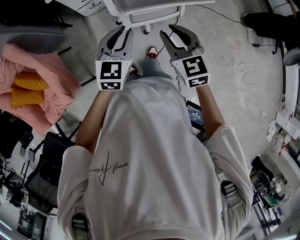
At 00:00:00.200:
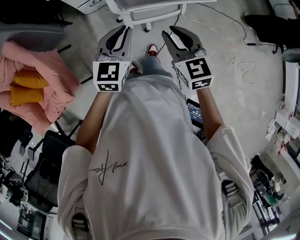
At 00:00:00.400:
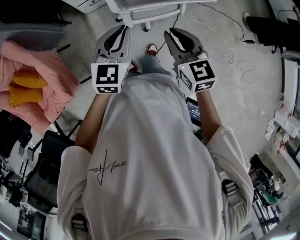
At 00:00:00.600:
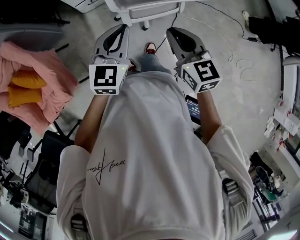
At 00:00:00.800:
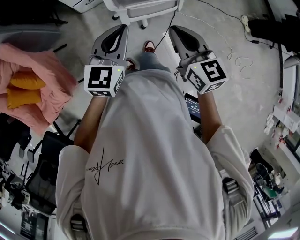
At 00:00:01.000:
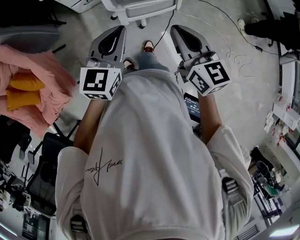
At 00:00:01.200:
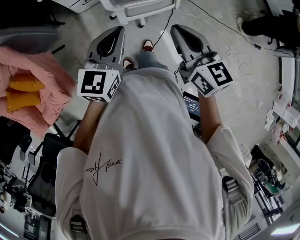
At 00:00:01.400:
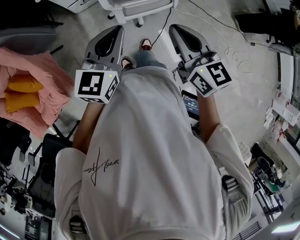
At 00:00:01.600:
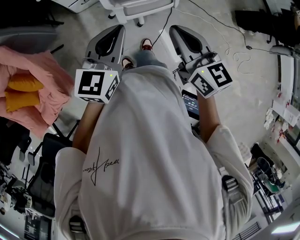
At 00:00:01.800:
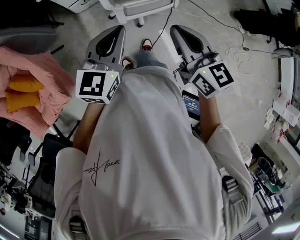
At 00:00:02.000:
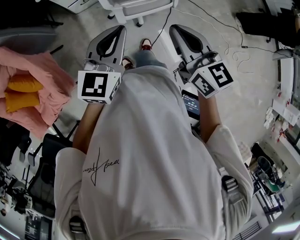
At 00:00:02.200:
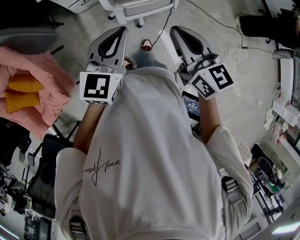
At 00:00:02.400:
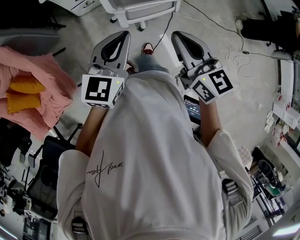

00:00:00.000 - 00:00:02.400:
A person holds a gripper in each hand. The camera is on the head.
00:00:00.000 - 00:00:01.200: Both grippers travel together upward, roughly 5 cm. The right gripper turns by roughly 20 degrees, and closes.
00:00:01.200 - 00:00:02.400: The grippers make only small movements.

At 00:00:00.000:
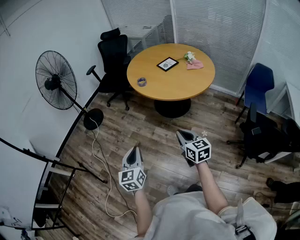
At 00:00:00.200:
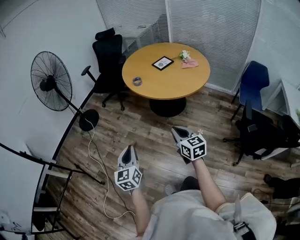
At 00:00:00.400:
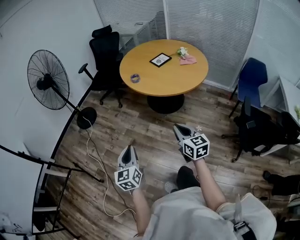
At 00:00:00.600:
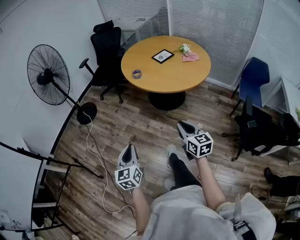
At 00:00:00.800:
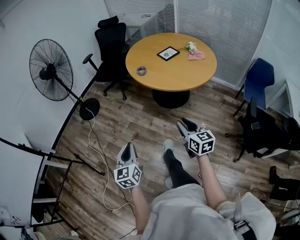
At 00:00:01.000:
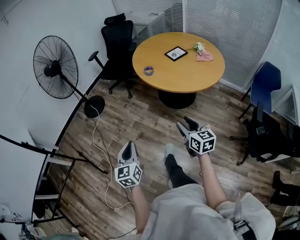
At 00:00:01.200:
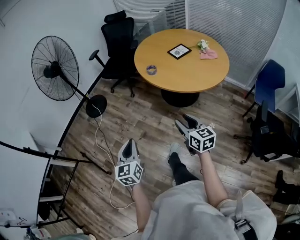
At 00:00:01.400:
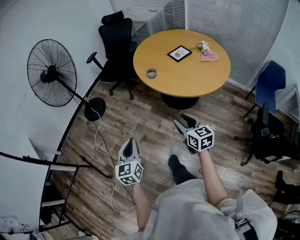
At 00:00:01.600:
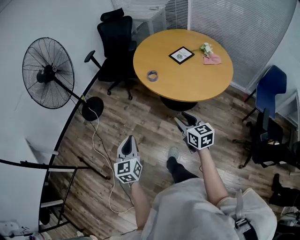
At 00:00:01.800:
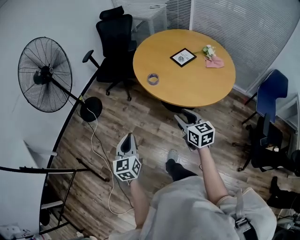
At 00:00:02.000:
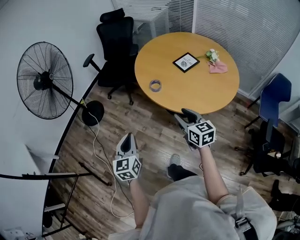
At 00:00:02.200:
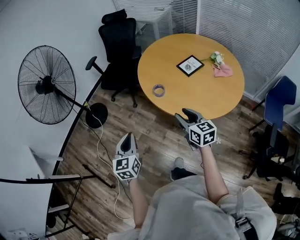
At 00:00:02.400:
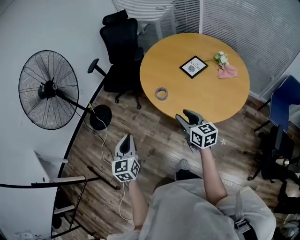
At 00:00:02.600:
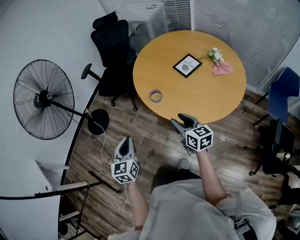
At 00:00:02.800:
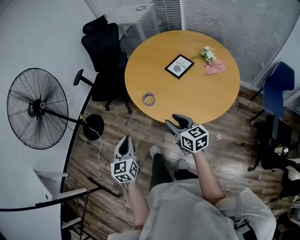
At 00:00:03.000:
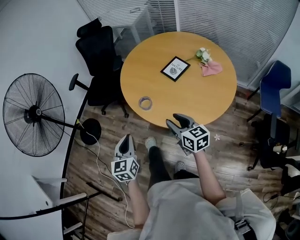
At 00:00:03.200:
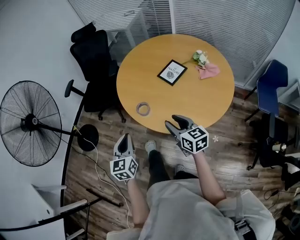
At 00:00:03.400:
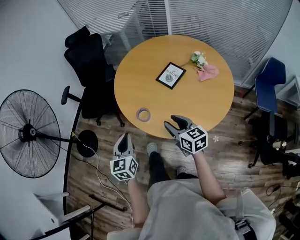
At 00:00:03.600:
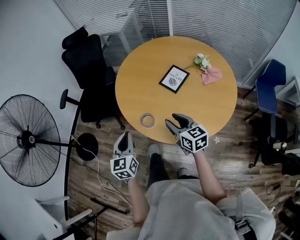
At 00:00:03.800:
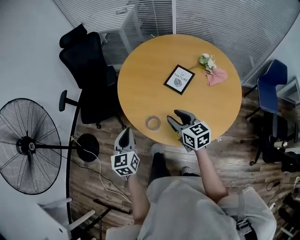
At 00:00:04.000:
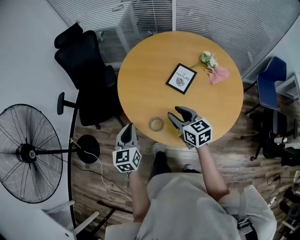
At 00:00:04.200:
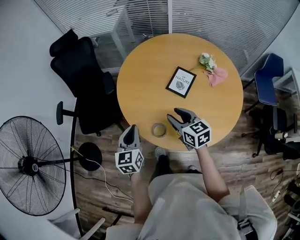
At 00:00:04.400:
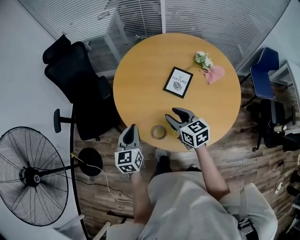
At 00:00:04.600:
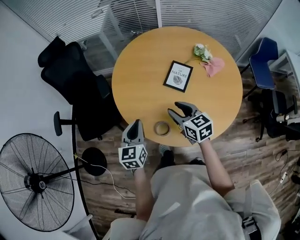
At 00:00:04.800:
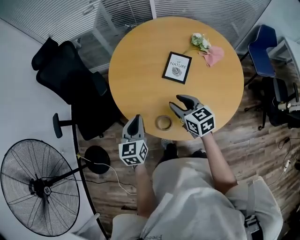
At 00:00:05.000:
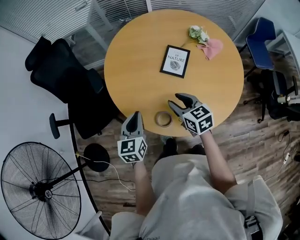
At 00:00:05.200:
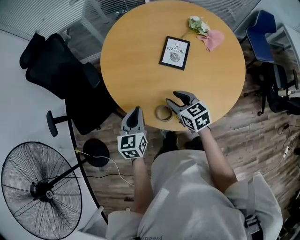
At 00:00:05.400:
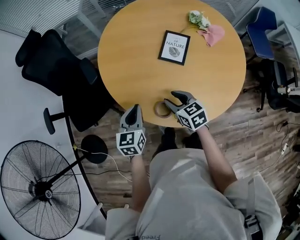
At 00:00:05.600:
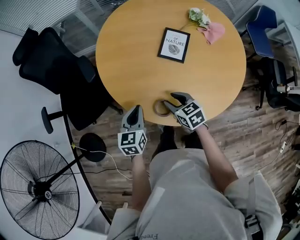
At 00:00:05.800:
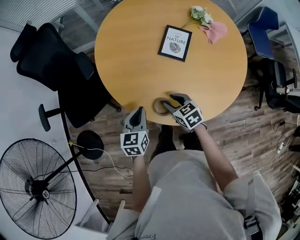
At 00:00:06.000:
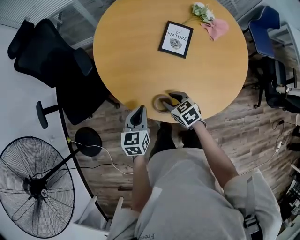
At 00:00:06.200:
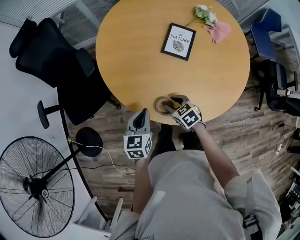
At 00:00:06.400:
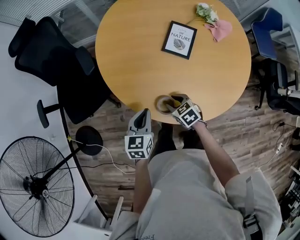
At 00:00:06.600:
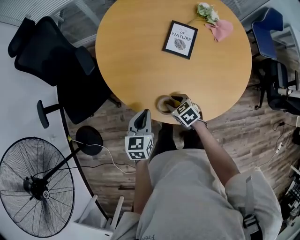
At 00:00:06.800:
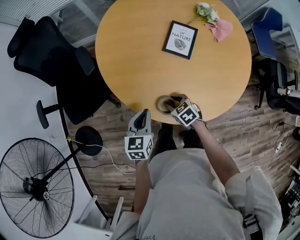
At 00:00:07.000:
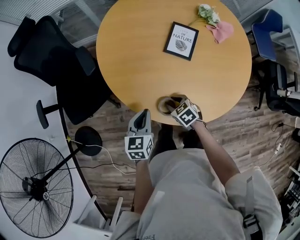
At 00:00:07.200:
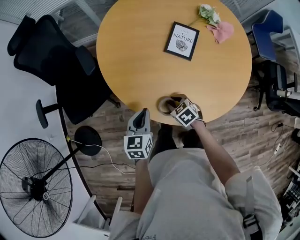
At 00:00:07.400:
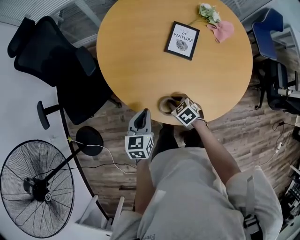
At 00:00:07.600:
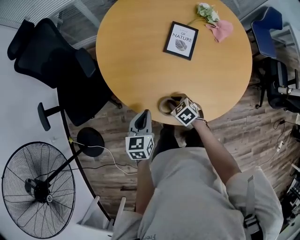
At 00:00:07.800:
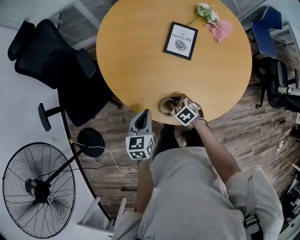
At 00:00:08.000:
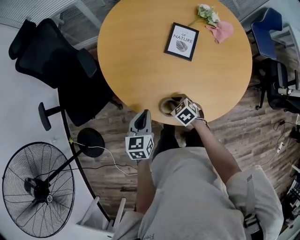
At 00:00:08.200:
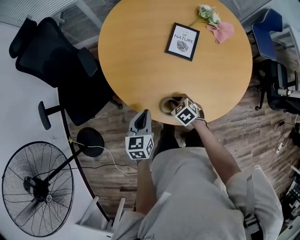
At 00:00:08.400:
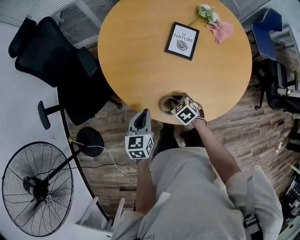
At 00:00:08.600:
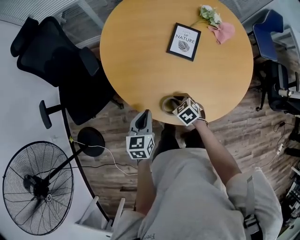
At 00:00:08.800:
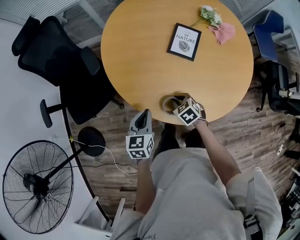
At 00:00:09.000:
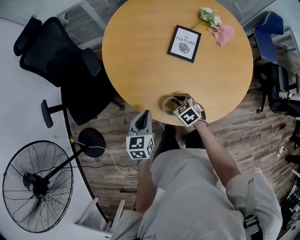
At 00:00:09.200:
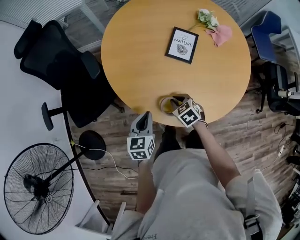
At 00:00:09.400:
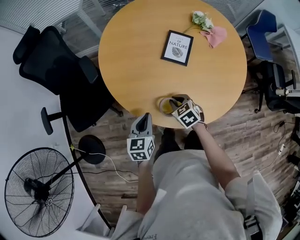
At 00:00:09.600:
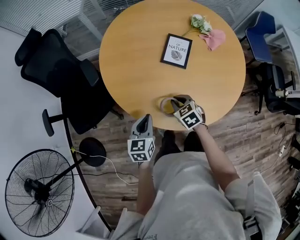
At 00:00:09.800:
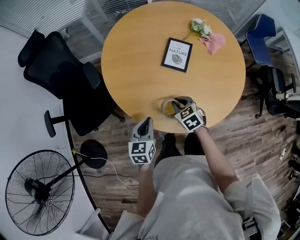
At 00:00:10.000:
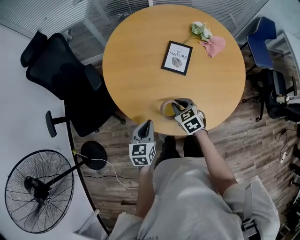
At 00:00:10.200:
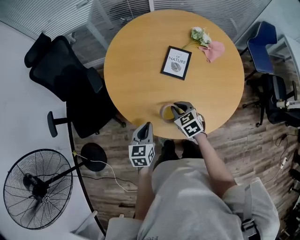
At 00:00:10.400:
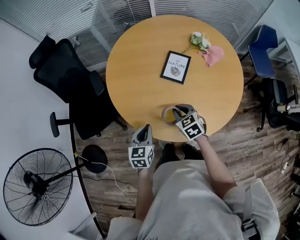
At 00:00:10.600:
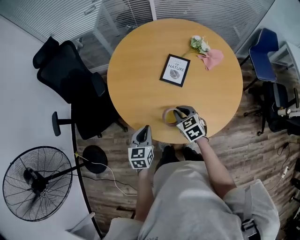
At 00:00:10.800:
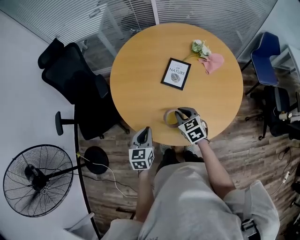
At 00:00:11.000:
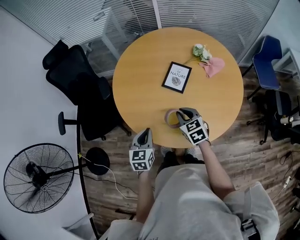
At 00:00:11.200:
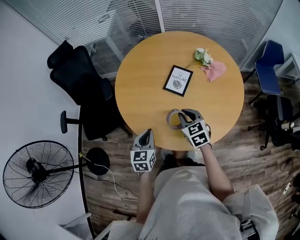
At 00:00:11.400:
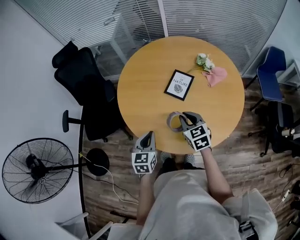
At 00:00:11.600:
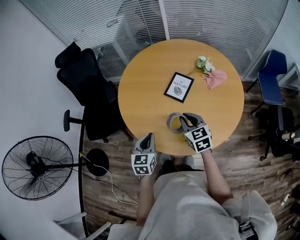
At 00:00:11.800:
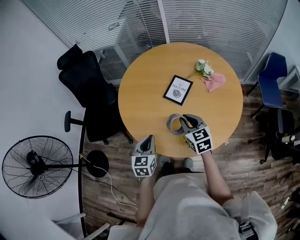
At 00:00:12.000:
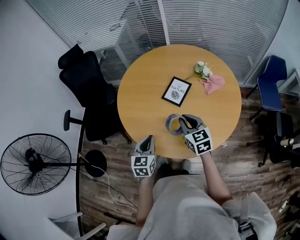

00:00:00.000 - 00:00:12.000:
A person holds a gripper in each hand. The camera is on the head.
00:00:00.000 - 00:00:01.600: The two grippers go approximately 25 cm forward. The right gripper opens.
00:00:01.600 - 00:00:03.000: Both grippers travel together forward, about 25 cm.
00:00:03.000 - 00:00:04.400: Both grippers travel together forward, approximately 30 cm. The left gripper rotates roughly 20 degrees.
00:00:04.400 - 00:00:06.000: Both grippers travel together downward, approximately 20 cm. The right gripper turns by roughly 30 degrees. Meanwhile the left gripper swivels approximately 20 degrees.
00:00:06.000 - 00:00:07.600: The right gripper is displaced downward by some 5 cm, and closes.
00:00:07.600 - 00:00:09.000: The grippers move only a little.
00:00:09.000 - 00:00:10.400: The right gripper moves upward and to the right, approximately 15 cm, while the left gripper is displaced to the right by approximately 5 cm.
00:00:10.400 - 00:00:12.000: The right gripper shifts approximately 15 cm upward and to the right, and changes its angle by some 20 degrees. The left gripper goes some 10 cm to the right and upward.

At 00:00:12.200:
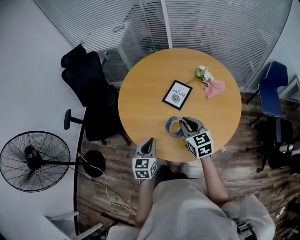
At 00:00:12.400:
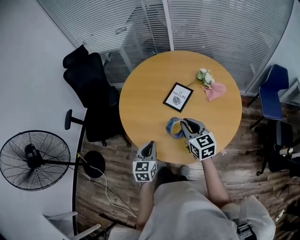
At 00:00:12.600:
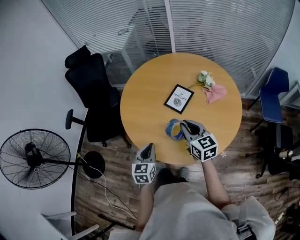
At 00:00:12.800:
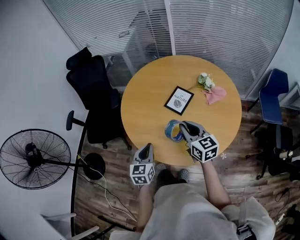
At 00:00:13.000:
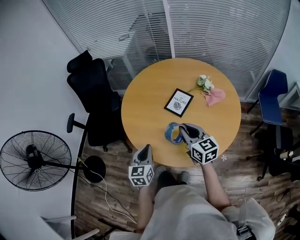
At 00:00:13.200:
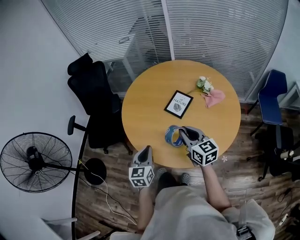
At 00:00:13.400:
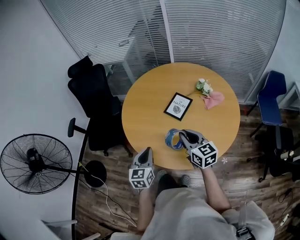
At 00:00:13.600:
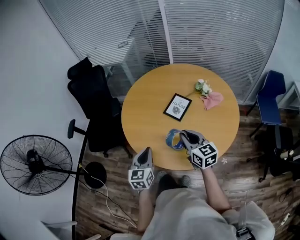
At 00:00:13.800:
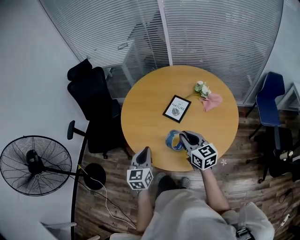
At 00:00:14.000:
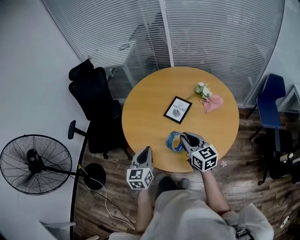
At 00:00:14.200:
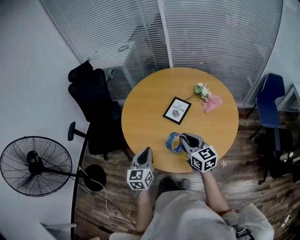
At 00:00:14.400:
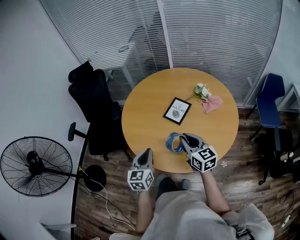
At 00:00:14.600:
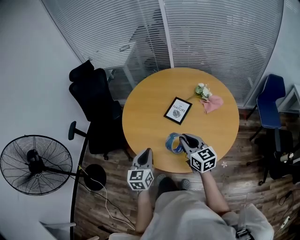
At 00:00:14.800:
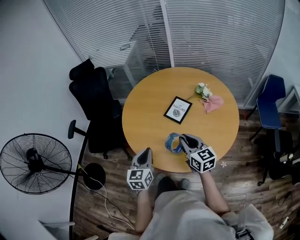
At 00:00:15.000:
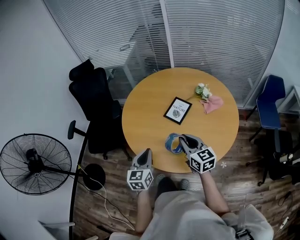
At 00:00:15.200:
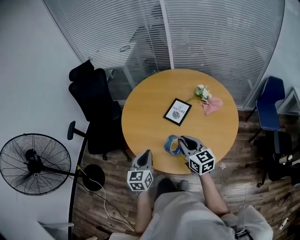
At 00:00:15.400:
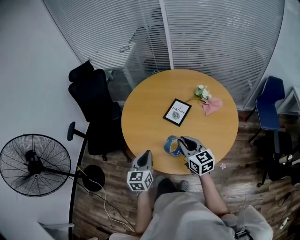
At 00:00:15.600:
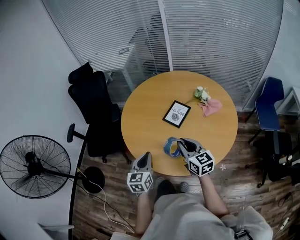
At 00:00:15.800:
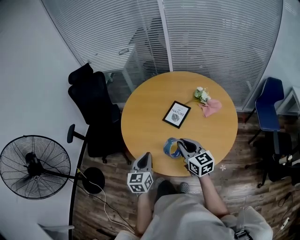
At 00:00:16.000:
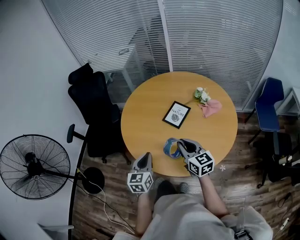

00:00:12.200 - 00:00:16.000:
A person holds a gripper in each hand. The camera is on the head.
00:00:12.200 - 00:00:13.400: The grippers move only a little.
00:00:13.400 - 00:00:14.800: The grippers stay close to where they were, moving slightly.
00:00:14.800 - 00:00:16.000: The two grippers keep their place.

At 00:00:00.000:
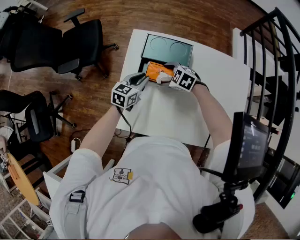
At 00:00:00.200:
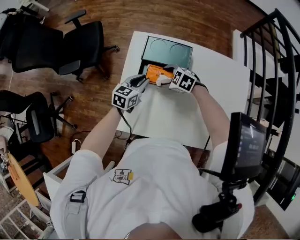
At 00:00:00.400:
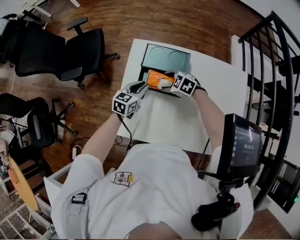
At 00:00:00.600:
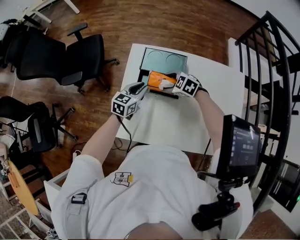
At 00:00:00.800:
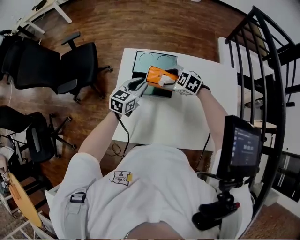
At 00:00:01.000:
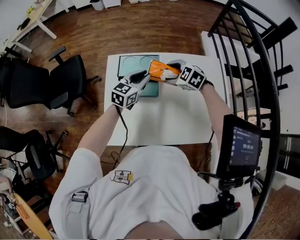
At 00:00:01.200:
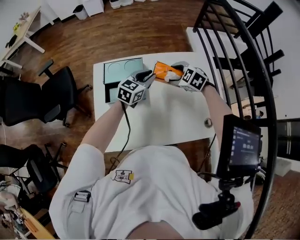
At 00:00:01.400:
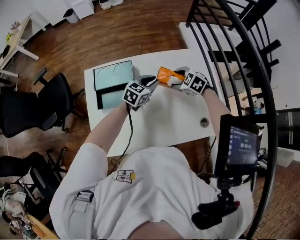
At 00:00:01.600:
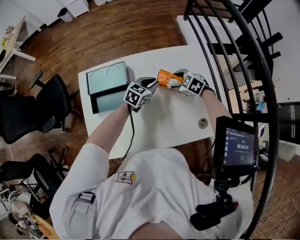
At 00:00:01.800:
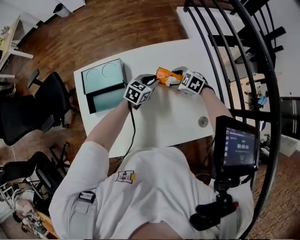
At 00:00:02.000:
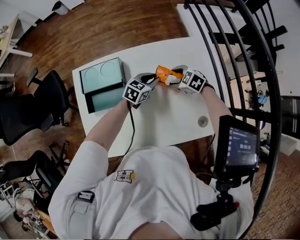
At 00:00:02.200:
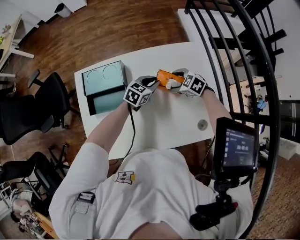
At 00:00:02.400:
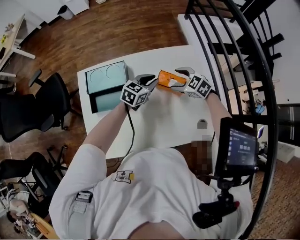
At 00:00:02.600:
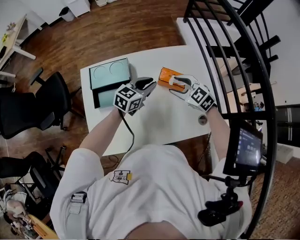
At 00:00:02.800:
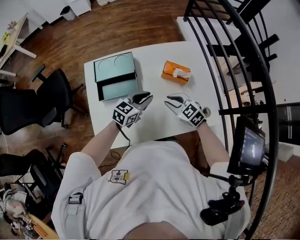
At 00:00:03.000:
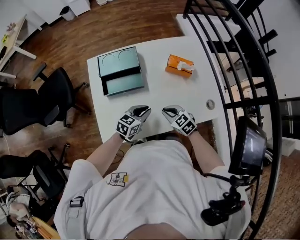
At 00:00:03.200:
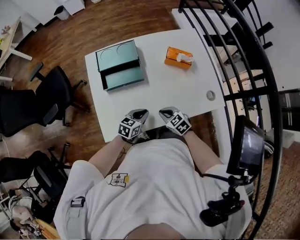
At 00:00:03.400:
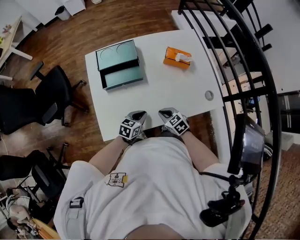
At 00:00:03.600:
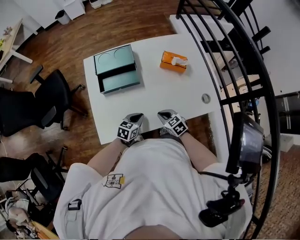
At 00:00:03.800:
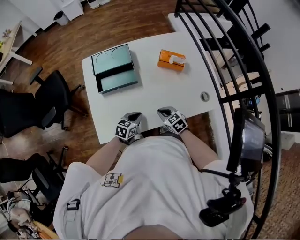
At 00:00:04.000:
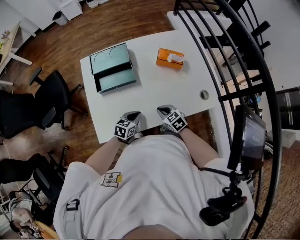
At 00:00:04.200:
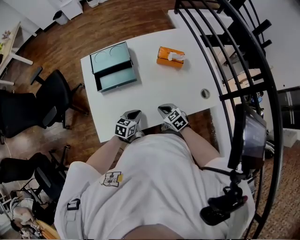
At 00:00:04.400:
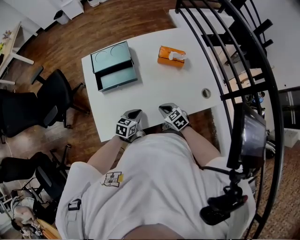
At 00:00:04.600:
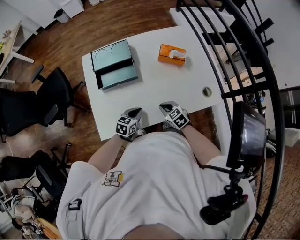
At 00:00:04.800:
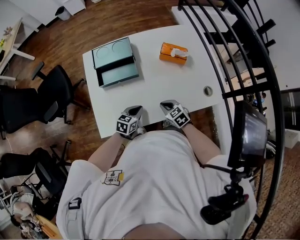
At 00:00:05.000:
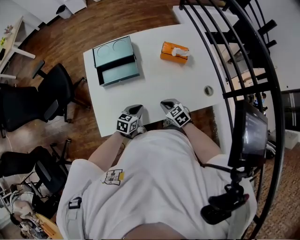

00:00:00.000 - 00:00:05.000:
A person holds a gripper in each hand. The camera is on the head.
00:00:00.000 - 00:00:01.600: The left gripper travels upward and back again, roughly 10 cm each way, and changes its angle by approximately 30 degrees, while the right gripper reaches roughly 10 cm upward, then returns, and changes its angle by about 30 degrees.
00:00:01.600 - 00:00:03.400: The grippers both shift backward, downward and to the left by roughly 25 cm. The right gripper turns by approximately 30 degrees, and closes.
00:00:03.400 - 00:00:05.000: There are only small adjustments of the grippers.
